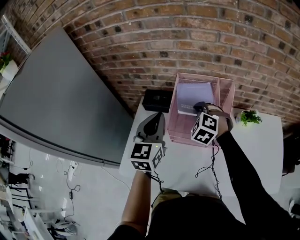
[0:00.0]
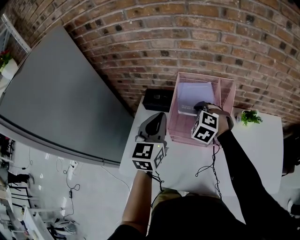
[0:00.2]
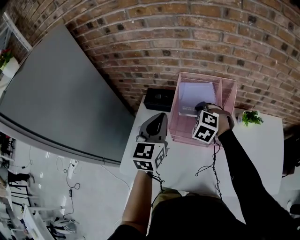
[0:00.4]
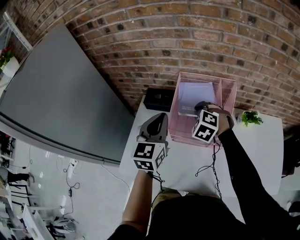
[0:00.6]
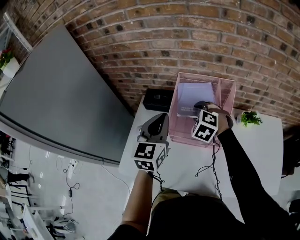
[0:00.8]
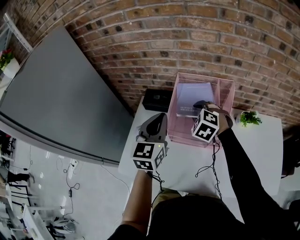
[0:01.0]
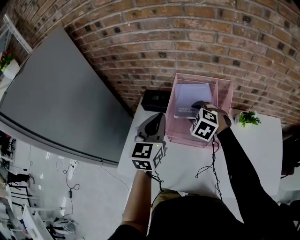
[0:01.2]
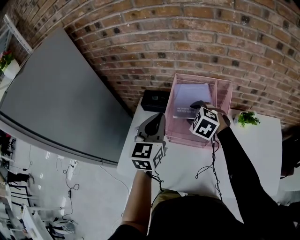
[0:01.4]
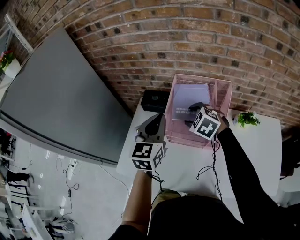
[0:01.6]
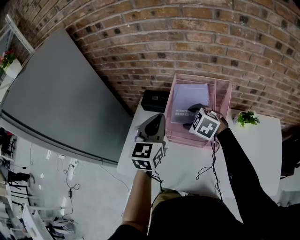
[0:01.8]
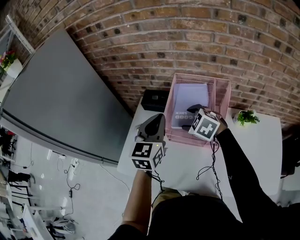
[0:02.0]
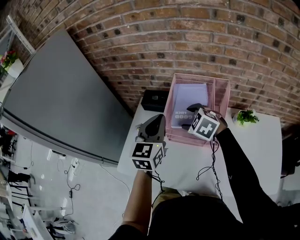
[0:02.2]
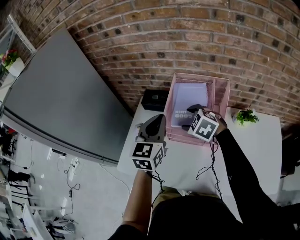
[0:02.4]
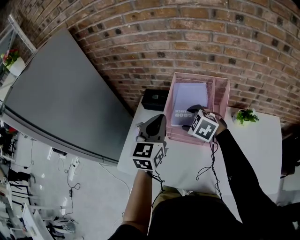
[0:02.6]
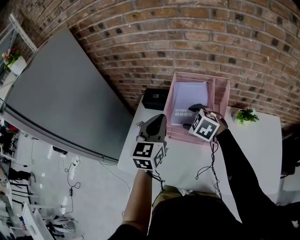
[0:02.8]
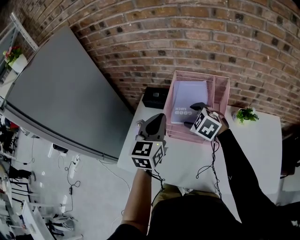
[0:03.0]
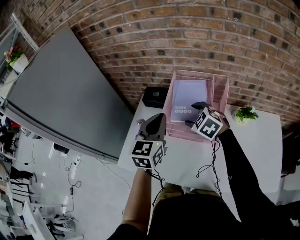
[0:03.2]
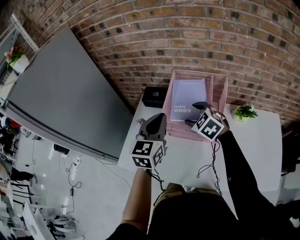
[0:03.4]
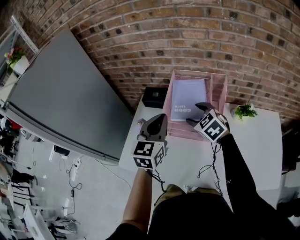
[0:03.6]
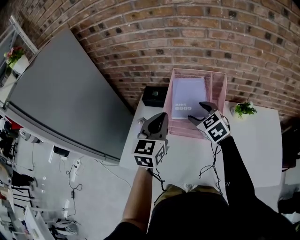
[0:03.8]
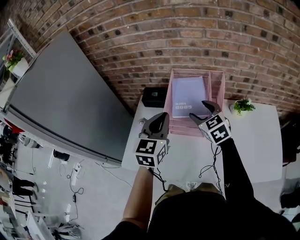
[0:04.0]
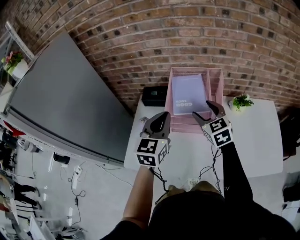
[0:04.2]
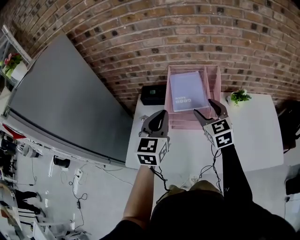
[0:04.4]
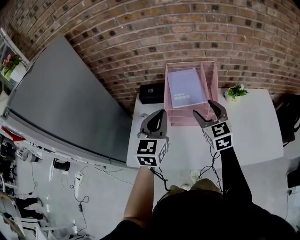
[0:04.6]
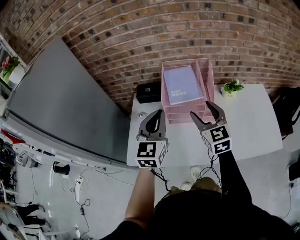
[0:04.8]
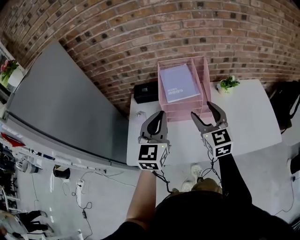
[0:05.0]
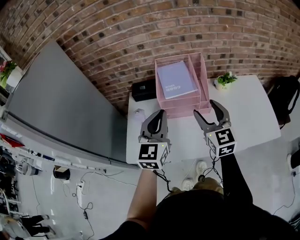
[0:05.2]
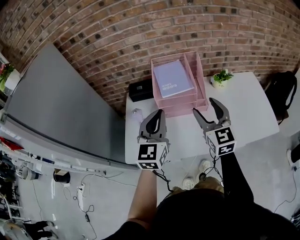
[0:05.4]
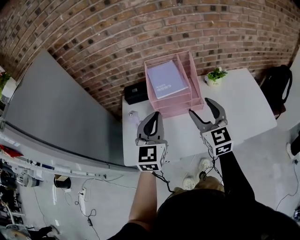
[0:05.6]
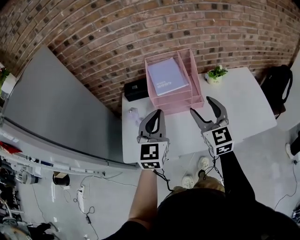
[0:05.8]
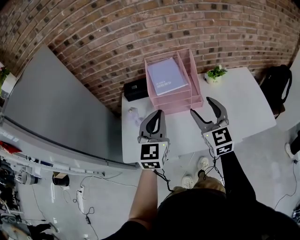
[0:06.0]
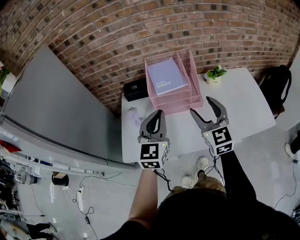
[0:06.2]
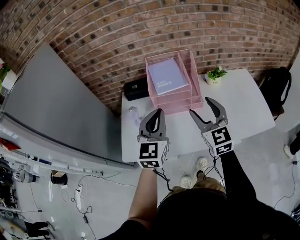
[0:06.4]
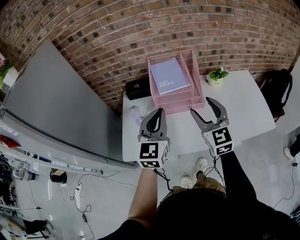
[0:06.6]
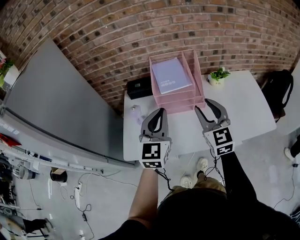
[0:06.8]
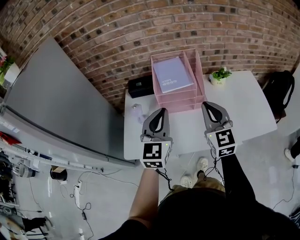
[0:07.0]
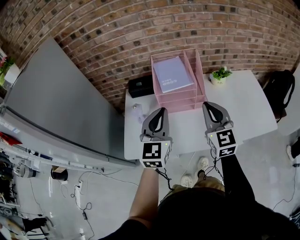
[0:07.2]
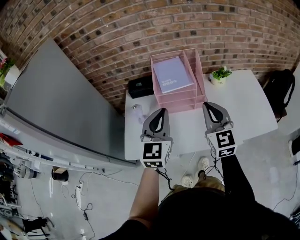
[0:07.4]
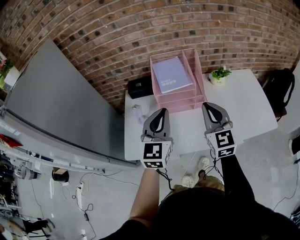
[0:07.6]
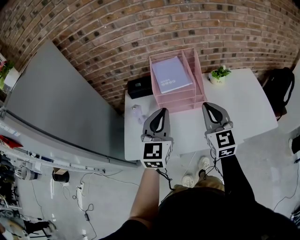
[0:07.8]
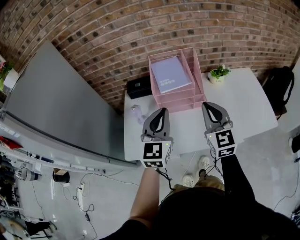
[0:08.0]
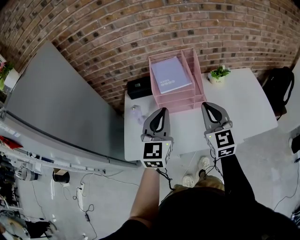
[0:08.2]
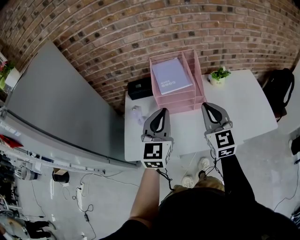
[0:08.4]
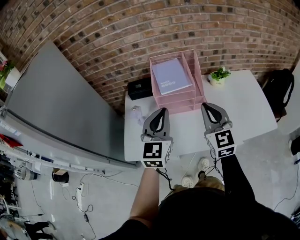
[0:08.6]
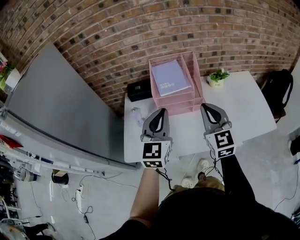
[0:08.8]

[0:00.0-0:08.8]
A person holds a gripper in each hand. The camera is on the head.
0:00.0 to 0:01.4: The right gripper opens.
0:01.4 to 0:03.0: The grippers stay close to where they were, moving slightly.
0:03.0 to 0:04.4: The right gripper moves upward and backward, roughly 10 cm, and changes its angle by approximately 50 degrees, while the left gripper moves some 5 cm.
0:04.4 to 0:05.8: The grippers both shift backward by about 10 cm.
0:05.8 to 0:07.4: The right gripper closes up.
0:07.4 to 0:08.8: Both grippers stay about where they are.

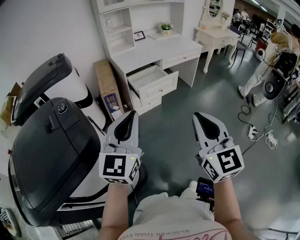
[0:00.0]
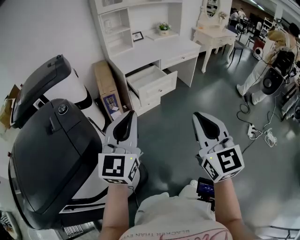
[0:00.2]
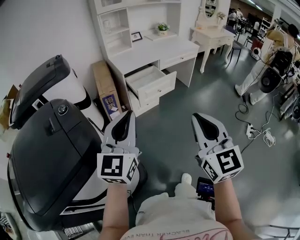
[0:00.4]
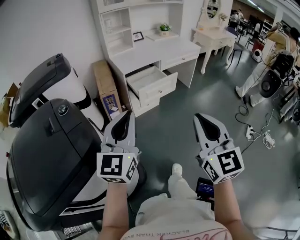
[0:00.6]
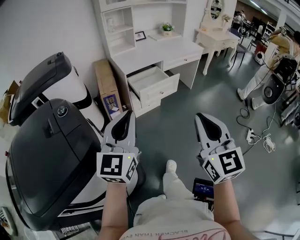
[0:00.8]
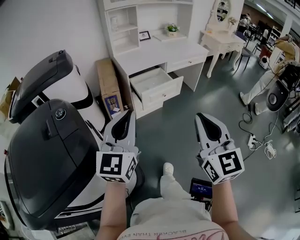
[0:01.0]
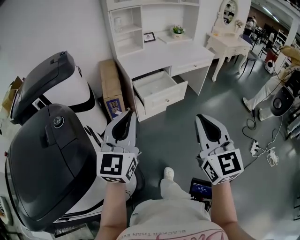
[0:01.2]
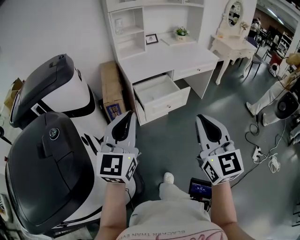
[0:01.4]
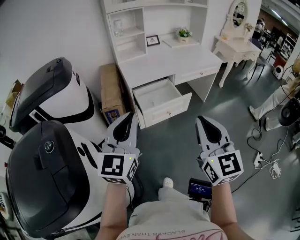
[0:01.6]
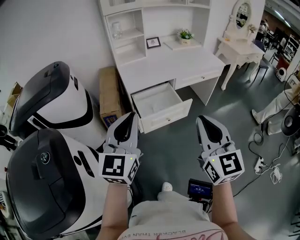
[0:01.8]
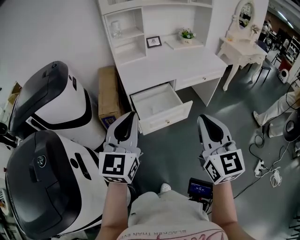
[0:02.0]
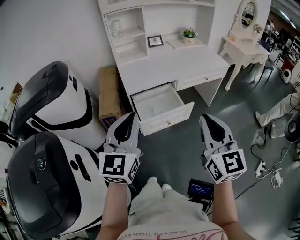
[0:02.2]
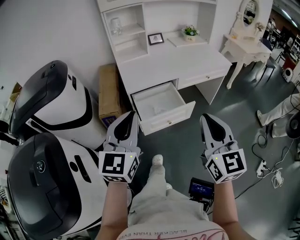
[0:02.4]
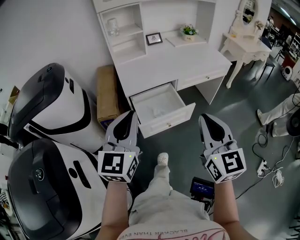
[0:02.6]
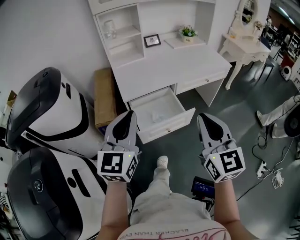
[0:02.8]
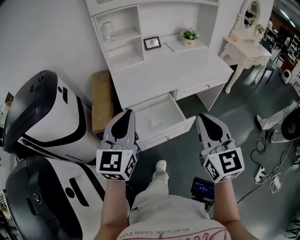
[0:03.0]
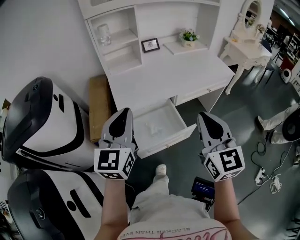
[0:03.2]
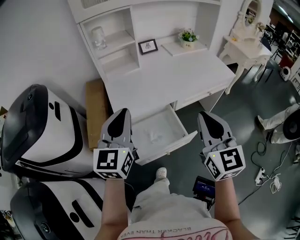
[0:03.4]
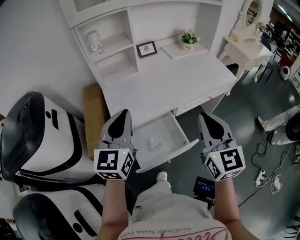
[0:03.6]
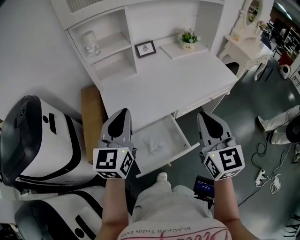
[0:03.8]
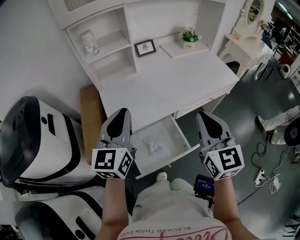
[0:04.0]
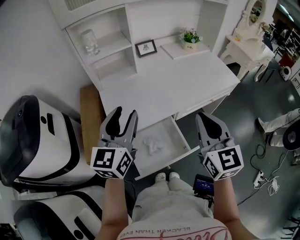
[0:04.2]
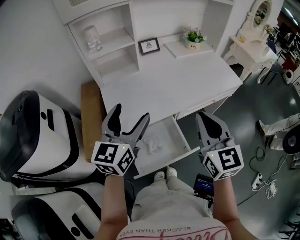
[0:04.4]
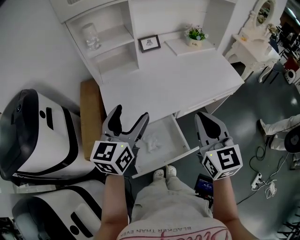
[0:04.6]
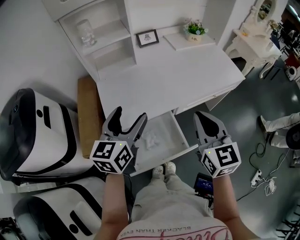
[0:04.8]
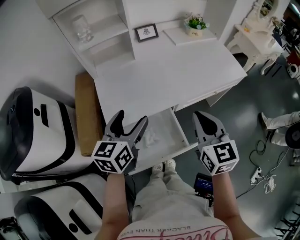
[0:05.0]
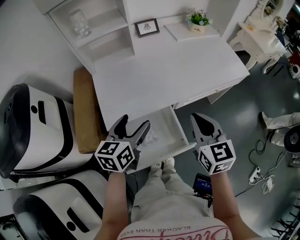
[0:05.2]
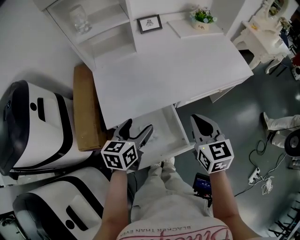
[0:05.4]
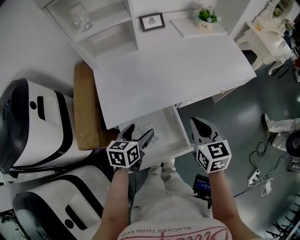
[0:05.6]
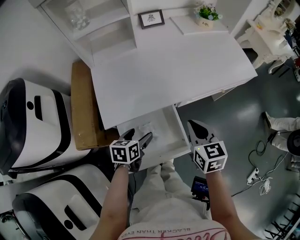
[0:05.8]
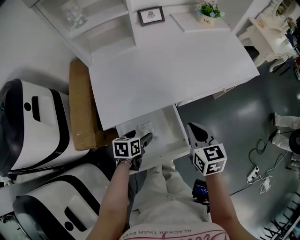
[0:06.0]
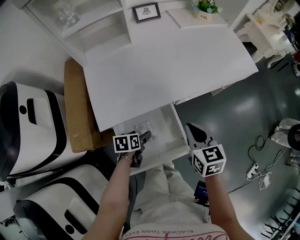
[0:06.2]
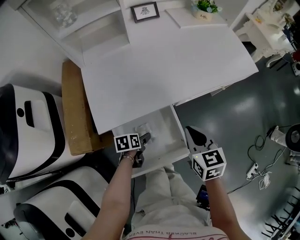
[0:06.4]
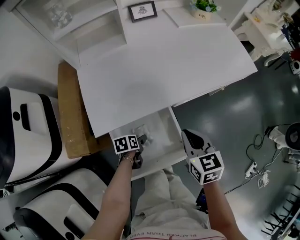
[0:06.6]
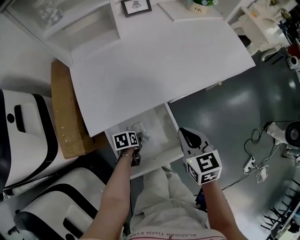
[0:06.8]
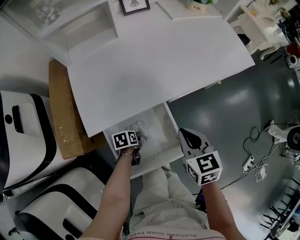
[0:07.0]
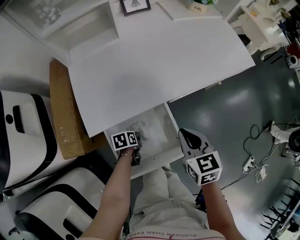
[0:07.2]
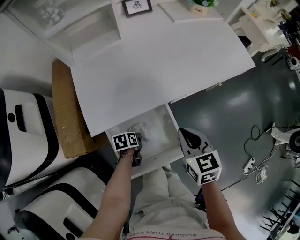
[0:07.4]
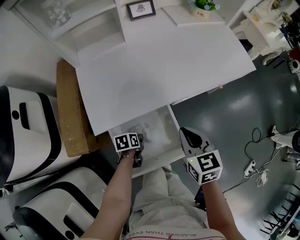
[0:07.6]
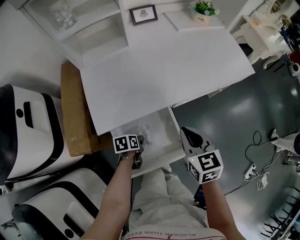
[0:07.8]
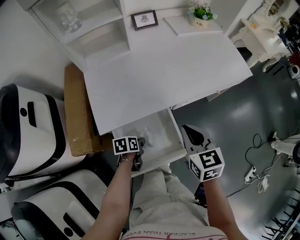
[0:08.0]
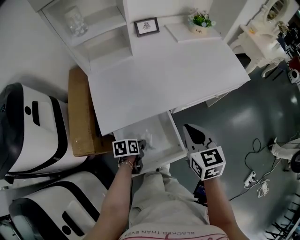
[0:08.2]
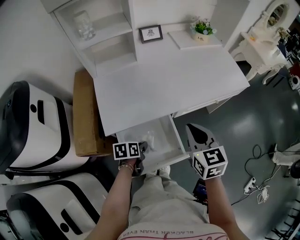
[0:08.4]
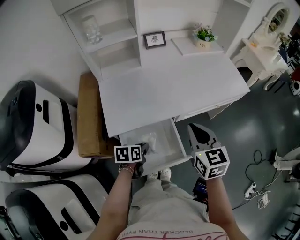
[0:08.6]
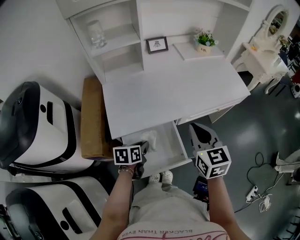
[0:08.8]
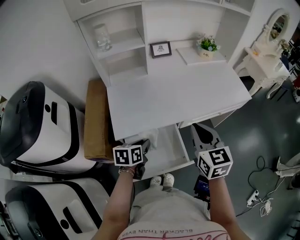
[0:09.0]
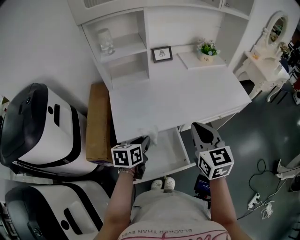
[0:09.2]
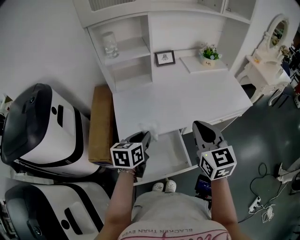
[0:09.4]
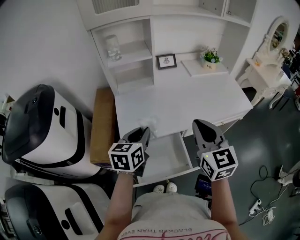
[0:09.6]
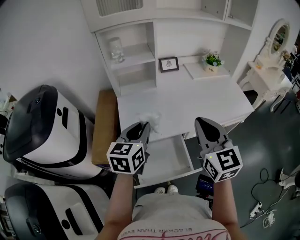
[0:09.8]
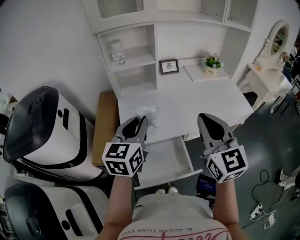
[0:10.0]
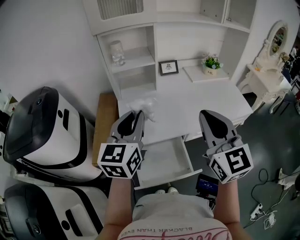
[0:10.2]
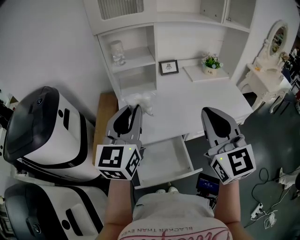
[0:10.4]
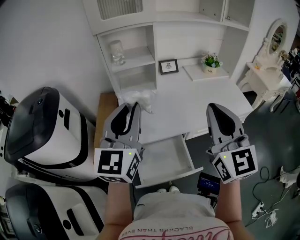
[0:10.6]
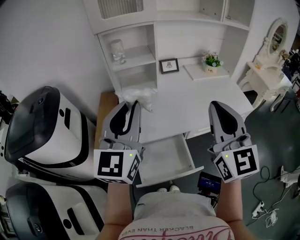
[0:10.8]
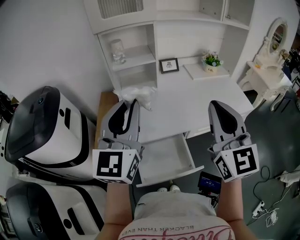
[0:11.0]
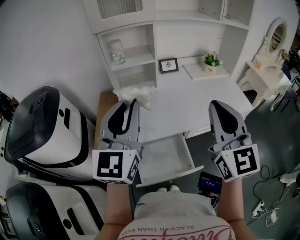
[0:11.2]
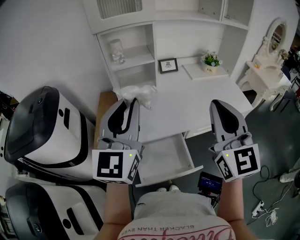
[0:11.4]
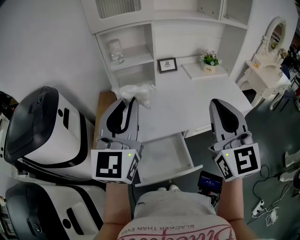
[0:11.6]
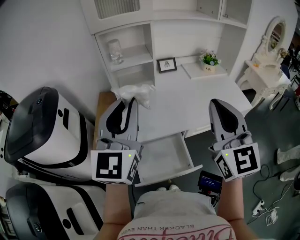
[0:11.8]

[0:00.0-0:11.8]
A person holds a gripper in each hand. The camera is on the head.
0:00.0 to 0:01.4: Both grippers move forward, about 15 cm.
0:01.4 to 0:03.0: The two grippers go approximately 30 cm forward.
0:03.0 to 0:04.4: Both grippers move forward, approximately 25 cm. The left gripper opens up.
0:04.4 to 0:06.0: The left gripper shifts roughly 35 cm downward, and angles its fingers downward, by about 50 degrees. The right gripper heads downward, covering about 20 cm, and turns by roughly 30 degrees.
0:06.0 to 0:07.4: The left gripper shifts approximately 10 cm downward, turns by about 20 degrees, and closes its fingers.
0:07.4 to 0:08.8: The grippers both shift upward by approximately 15 cm. The left gripper turns by some 20 degrees.
0:08.8 to 0:10.4: The right gripper is displaced upward by about 20 cm, and turns by some 30 degrees; the left gripper travels upward by about 35 cm, and points its fingers roughly 50 degrees further upward.
0:10.4 to 0:11.8: The left gripper shifts roughly 5 cm upward.

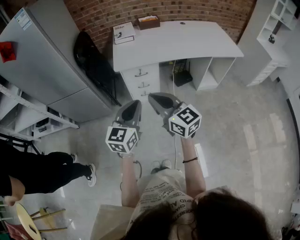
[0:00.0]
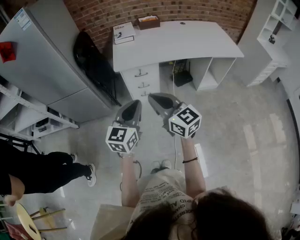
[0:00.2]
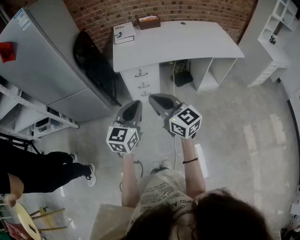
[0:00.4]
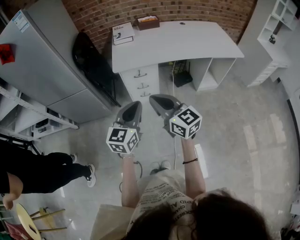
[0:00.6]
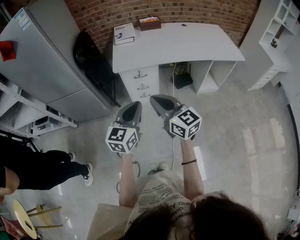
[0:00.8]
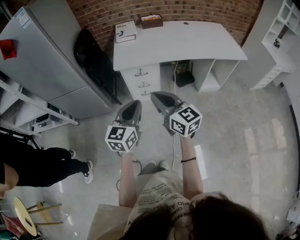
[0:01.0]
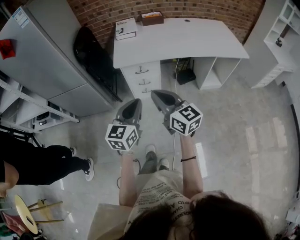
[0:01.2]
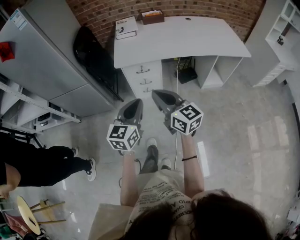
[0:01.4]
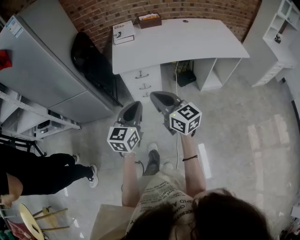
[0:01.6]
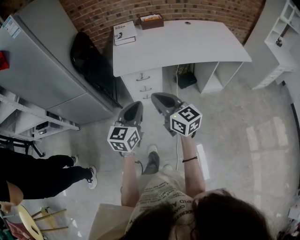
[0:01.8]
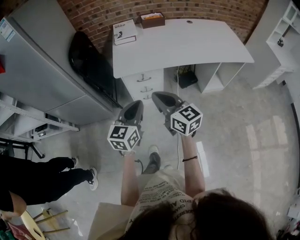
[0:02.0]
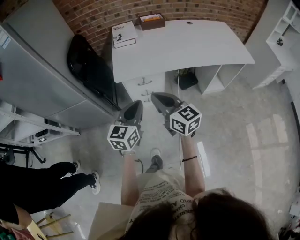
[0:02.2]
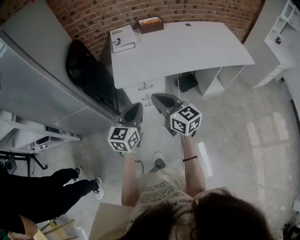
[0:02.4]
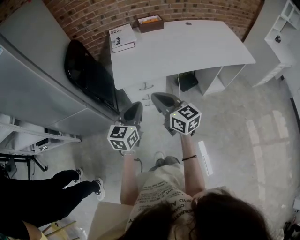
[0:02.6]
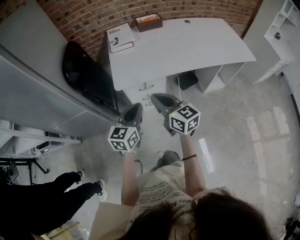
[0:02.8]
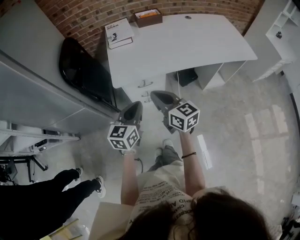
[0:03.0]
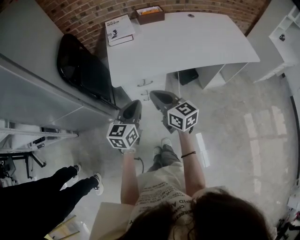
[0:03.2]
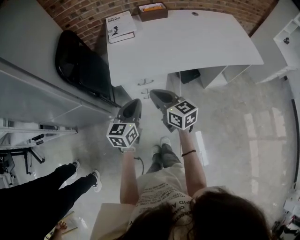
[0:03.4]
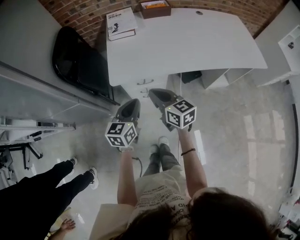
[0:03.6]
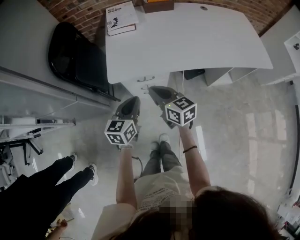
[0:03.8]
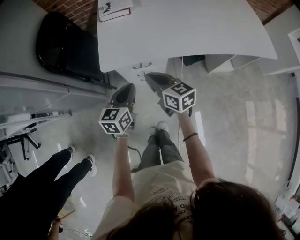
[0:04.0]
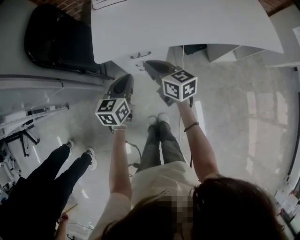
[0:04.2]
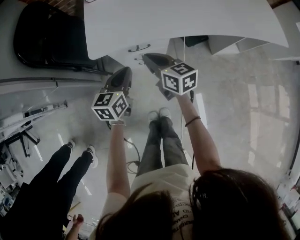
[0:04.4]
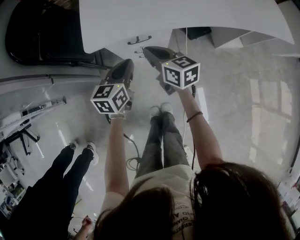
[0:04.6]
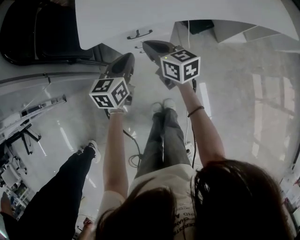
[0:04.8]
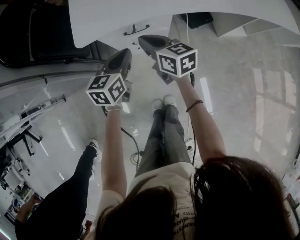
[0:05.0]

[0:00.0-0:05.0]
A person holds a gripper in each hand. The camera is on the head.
0:00.0 to 0:01.6: Both grippers travel together forward, roughly 5 cm.
0:01.6 to 0:03.4: The right gripper heads forward and downward, covering about 25 cm. Meanwhile the left gripper is displaced forward by some 25 cm.
0:03.4 to 0:05.0: Both grippers move downward and forward, about 25 cm.
